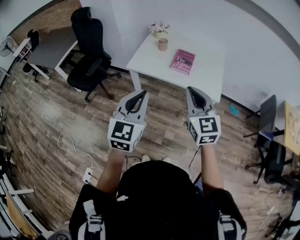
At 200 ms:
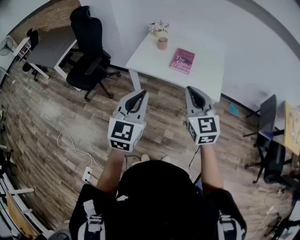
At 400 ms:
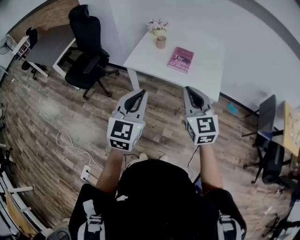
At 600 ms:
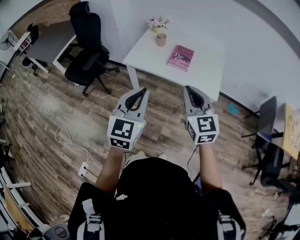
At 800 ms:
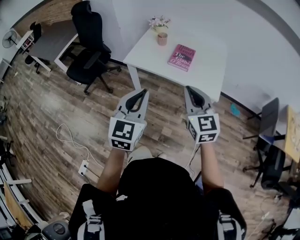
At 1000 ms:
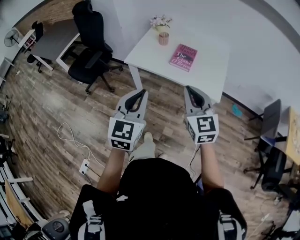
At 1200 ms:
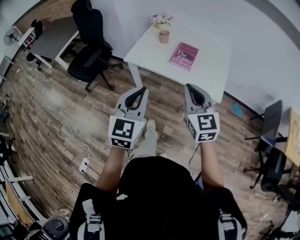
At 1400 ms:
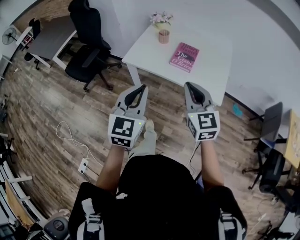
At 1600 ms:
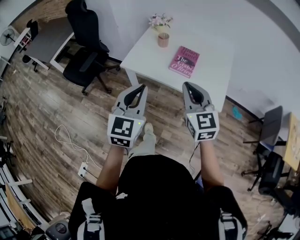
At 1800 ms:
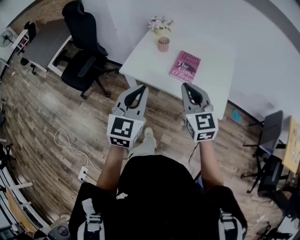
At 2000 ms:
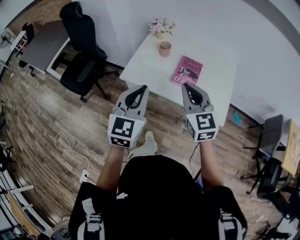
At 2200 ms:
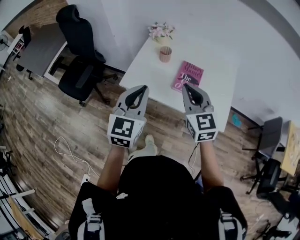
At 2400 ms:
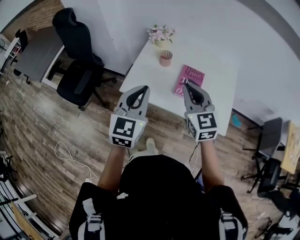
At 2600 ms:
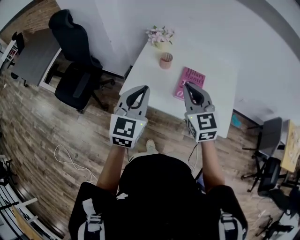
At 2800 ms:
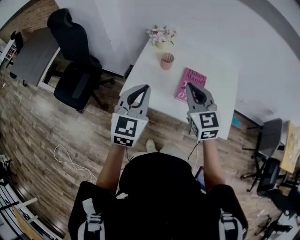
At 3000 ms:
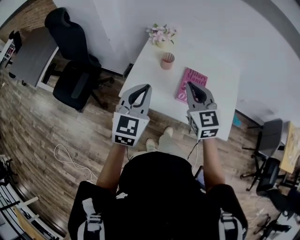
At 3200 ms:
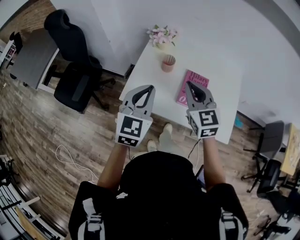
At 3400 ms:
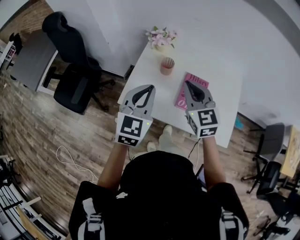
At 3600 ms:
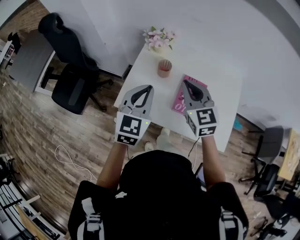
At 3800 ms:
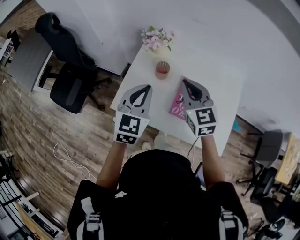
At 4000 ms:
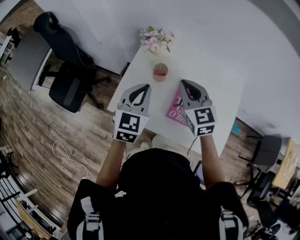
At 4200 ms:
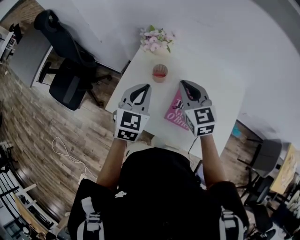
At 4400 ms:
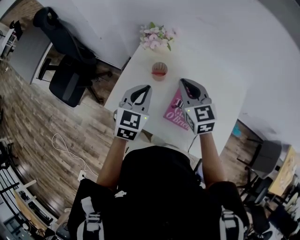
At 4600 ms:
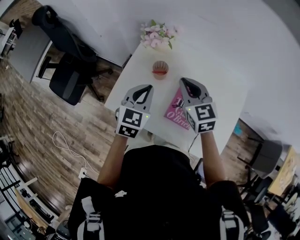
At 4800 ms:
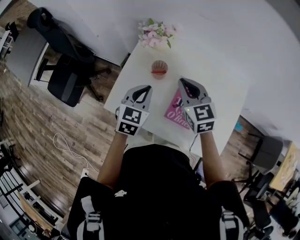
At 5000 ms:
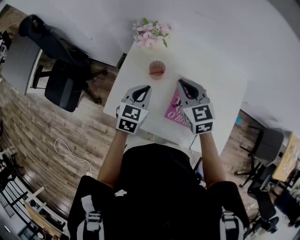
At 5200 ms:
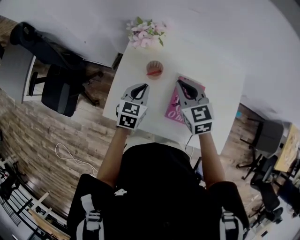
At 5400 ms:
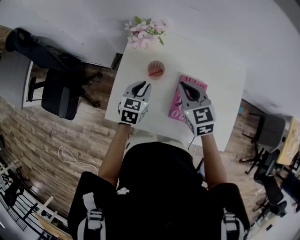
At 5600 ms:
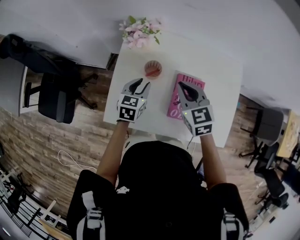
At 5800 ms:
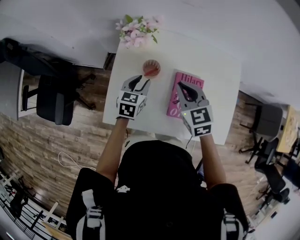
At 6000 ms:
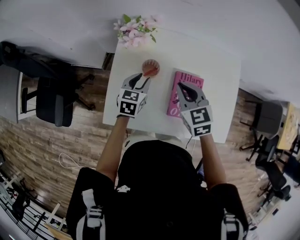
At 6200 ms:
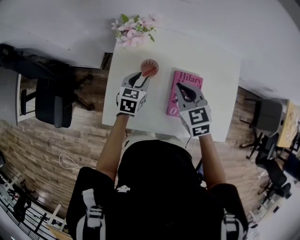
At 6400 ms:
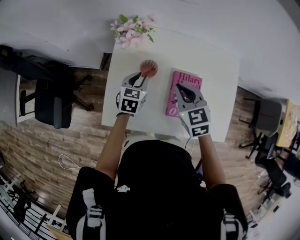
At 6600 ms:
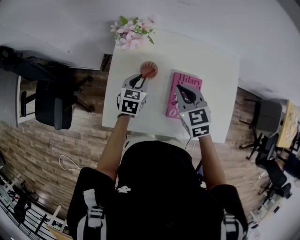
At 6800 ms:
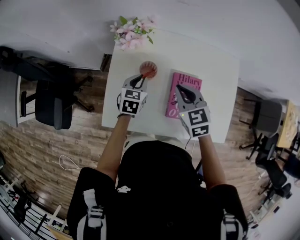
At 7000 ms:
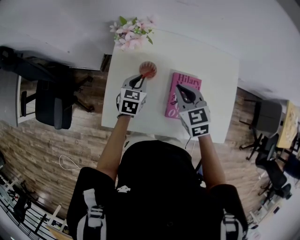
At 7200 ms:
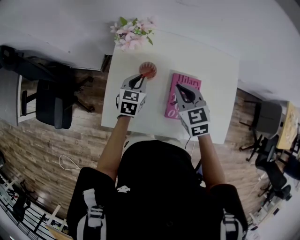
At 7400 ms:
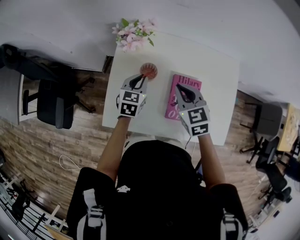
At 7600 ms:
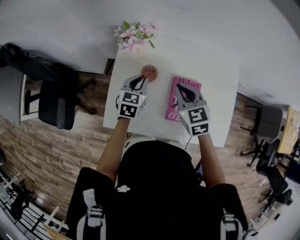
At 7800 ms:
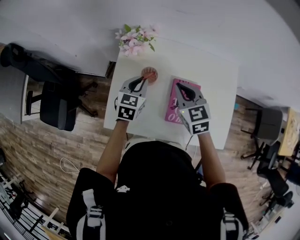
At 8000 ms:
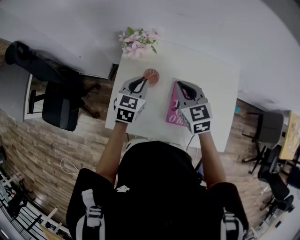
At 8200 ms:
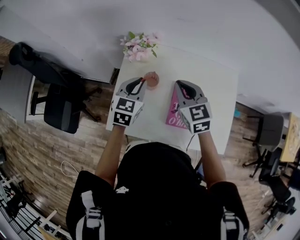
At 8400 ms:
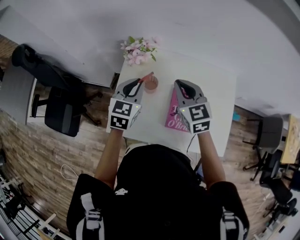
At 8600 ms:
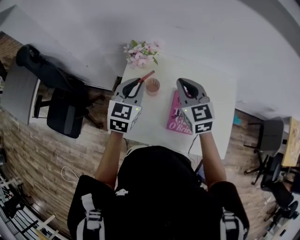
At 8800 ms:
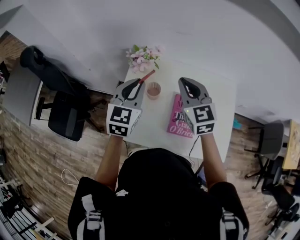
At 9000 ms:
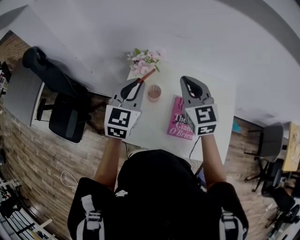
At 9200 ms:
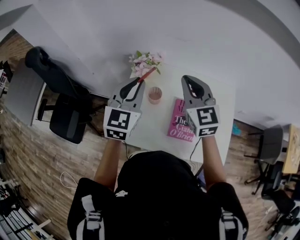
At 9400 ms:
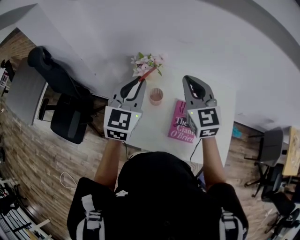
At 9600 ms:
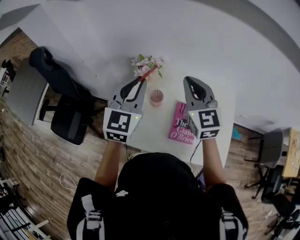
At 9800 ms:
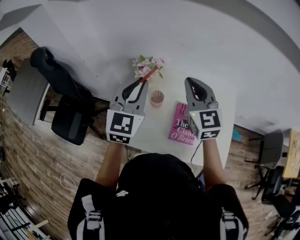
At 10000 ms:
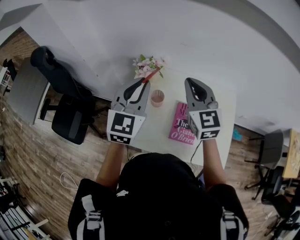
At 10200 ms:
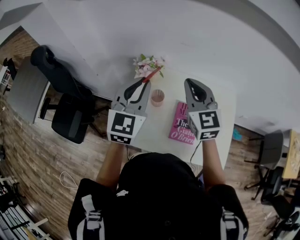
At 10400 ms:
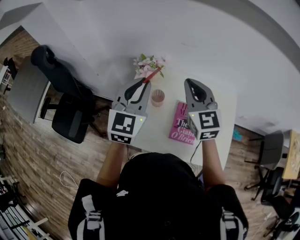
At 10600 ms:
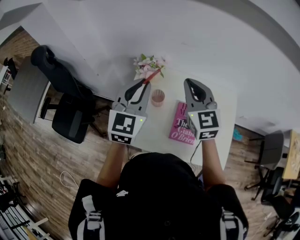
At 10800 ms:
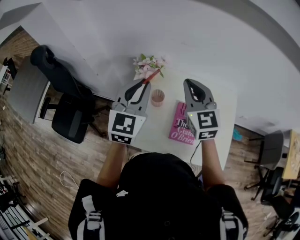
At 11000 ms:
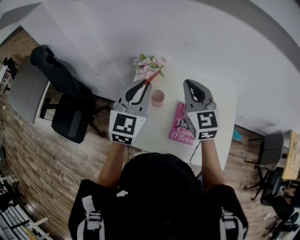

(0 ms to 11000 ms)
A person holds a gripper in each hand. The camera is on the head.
0 ms - 1600 ms: The two grippers go about 10 cm forward.
1600 ms - 3200 ms: The grippers both shift forward by roughly 25 cm.
3200 ms - 4800 ms: The right gripper heads forward and downward, covering roughly 20 cm. Meanwhile the left gripper moves forward, downward and to the right, about 20 cm.
4800 ms - 6200 ms: The right gripper goes roughly 5 cm downward; the left gripper travels downward and forward by some 15 cm, and opens its fingers.
6200 ms - 7800 ms: The left gripper is displaced upward by roughly 5 cm, and closes its fingers.
7800 ms - 9400 ms: The grippers both shift upward by roughly 20 cm. The left gripper rotates approximately 30 degrees. Meanwhile the right gripper swivels about 30 degrees.
9400 ms - 11000 ms: The grippers make only small movements.

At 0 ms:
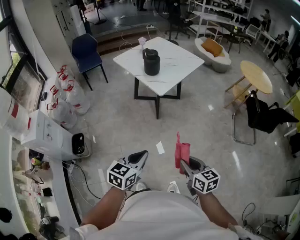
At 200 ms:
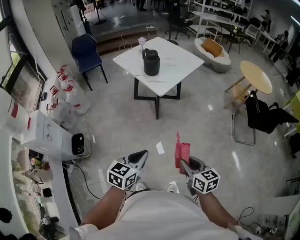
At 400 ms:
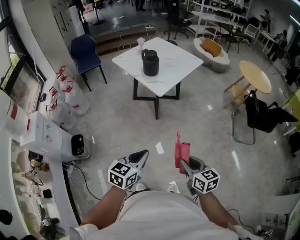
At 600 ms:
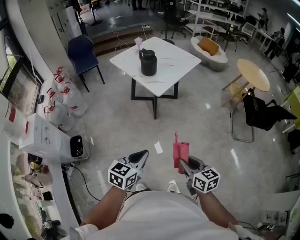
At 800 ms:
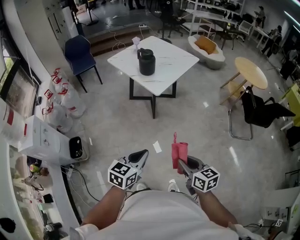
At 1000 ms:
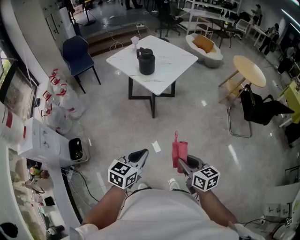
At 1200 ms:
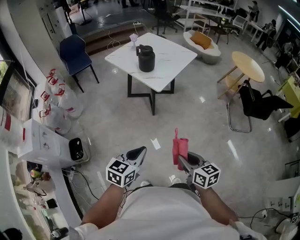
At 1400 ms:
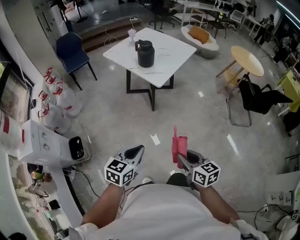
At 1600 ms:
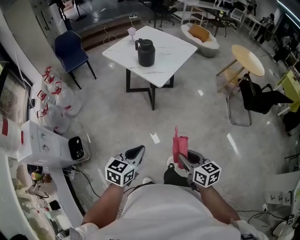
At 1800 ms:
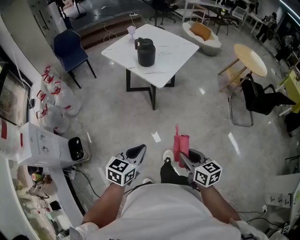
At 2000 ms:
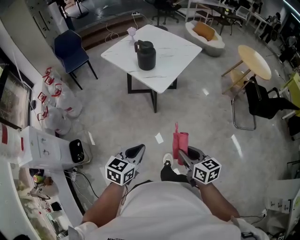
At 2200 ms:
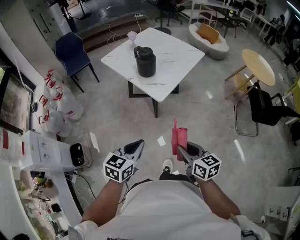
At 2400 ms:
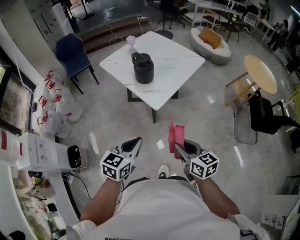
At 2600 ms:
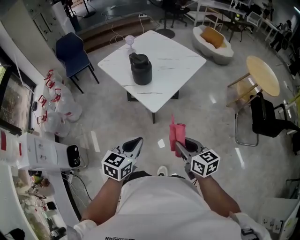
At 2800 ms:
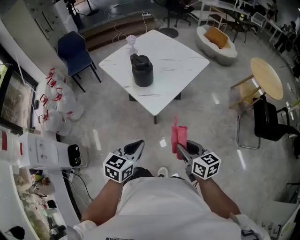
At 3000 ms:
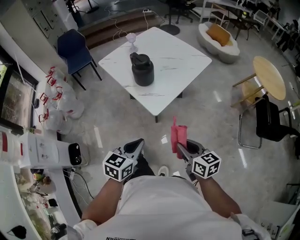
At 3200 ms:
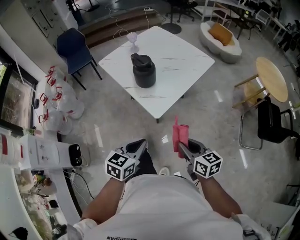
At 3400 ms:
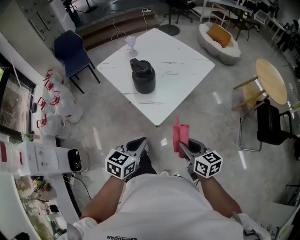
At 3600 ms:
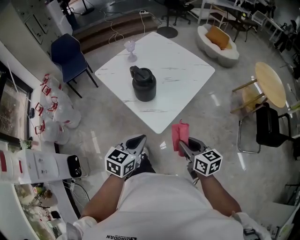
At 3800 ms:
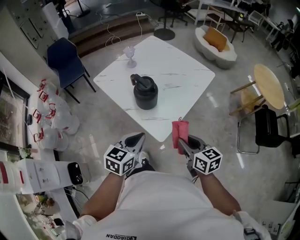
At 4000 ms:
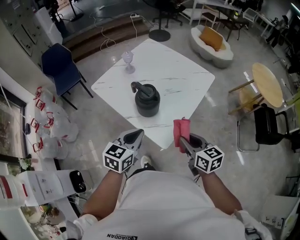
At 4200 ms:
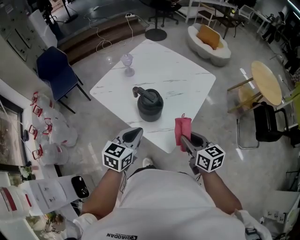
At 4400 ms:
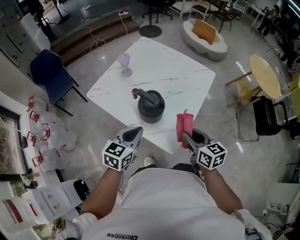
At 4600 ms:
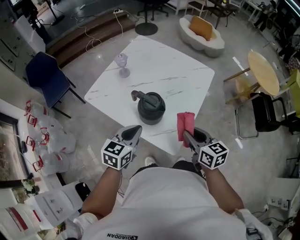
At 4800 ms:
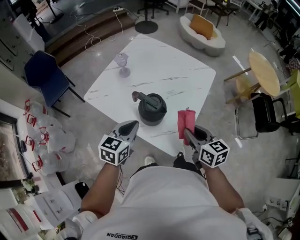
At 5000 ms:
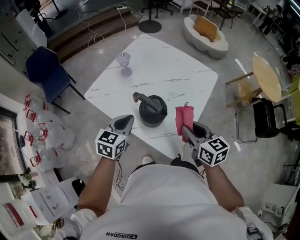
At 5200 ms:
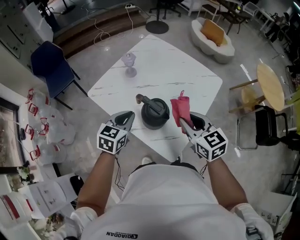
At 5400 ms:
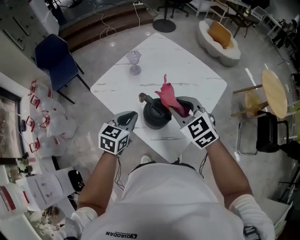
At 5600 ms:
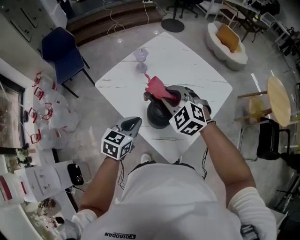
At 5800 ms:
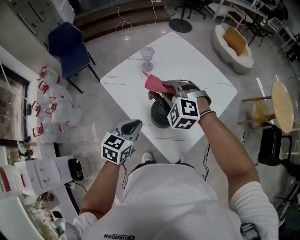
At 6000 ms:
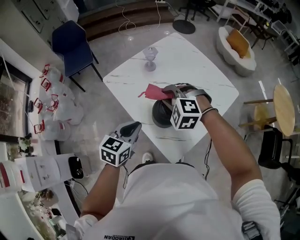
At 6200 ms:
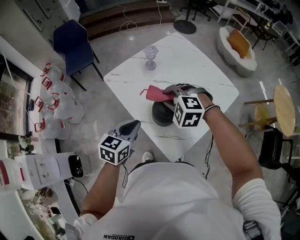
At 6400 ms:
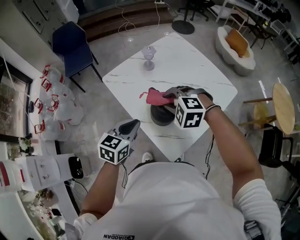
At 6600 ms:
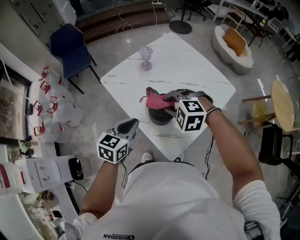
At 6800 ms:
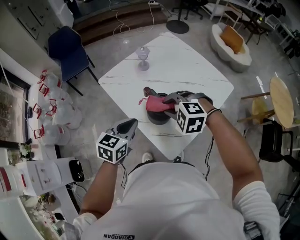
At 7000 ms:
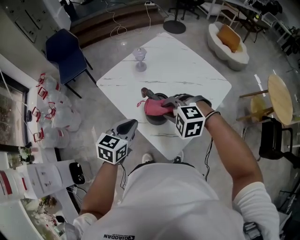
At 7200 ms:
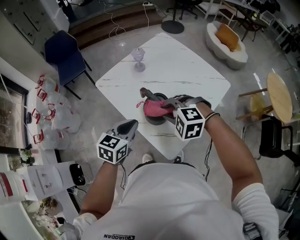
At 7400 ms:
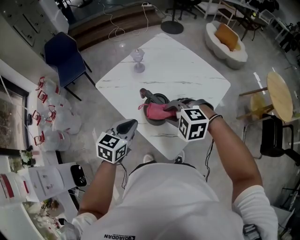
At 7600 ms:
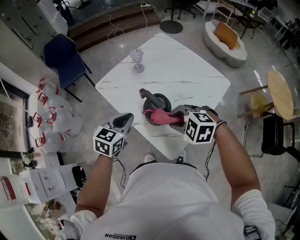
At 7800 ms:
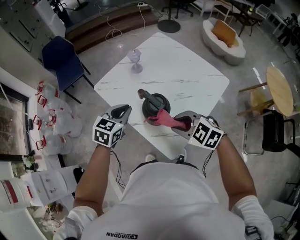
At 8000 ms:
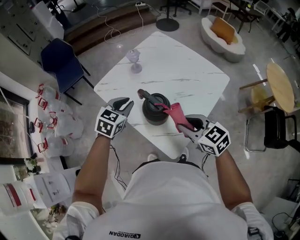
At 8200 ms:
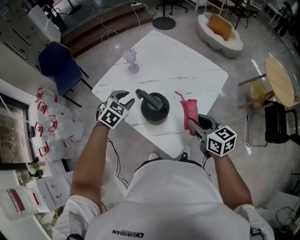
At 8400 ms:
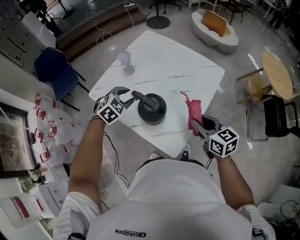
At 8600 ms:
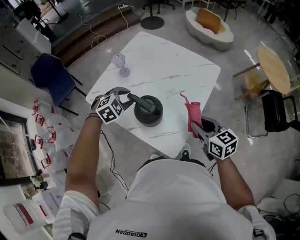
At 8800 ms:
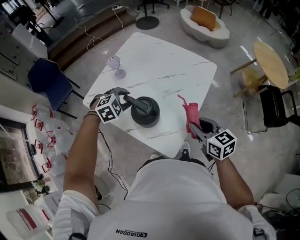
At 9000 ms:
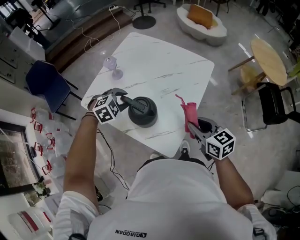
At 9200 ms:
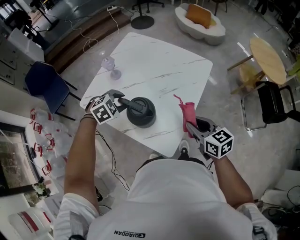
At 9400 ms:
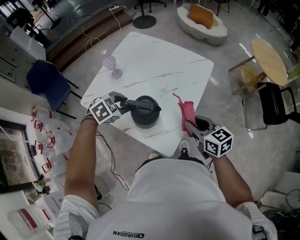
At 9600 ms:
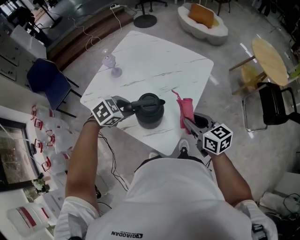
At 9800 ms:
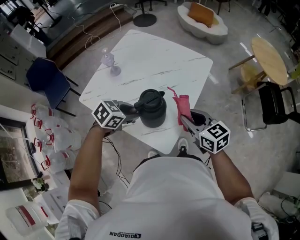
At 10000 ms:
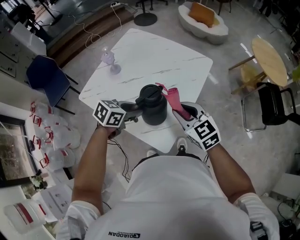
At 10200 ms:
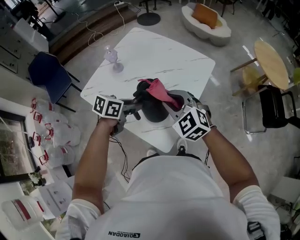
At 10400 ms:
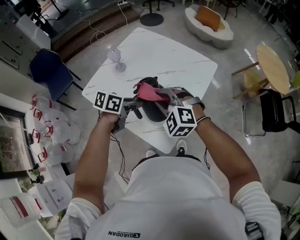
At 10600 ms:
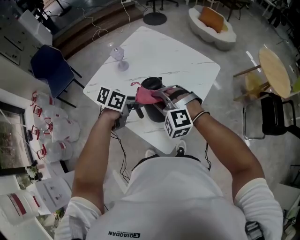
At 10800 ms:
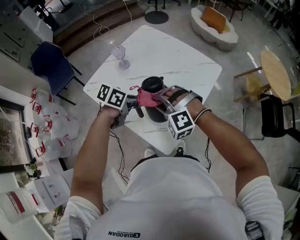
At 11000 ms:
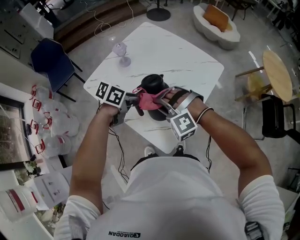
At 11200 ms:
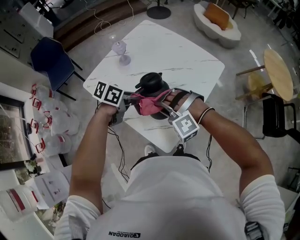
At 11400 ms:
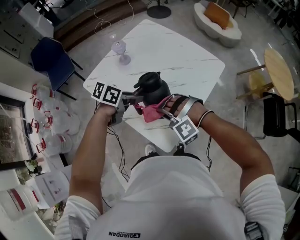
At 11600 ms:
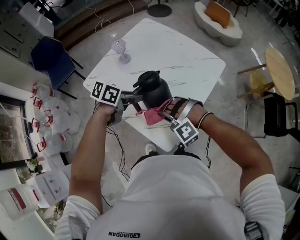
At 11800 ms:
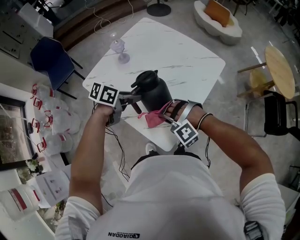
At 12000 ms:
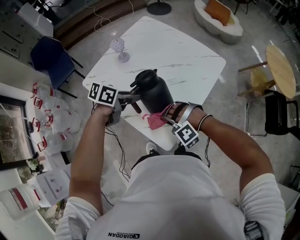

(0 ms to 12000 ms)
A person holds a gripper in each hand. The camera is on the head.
0 ms - 1600 ms: The two grippers go about 10 cm to the left.
1600 ms - 3000 ms: The two grippers go some 30 cm forward.
3000 ms - 4400 ms: Both grippers travel together forward, some 30 cm.
4400 ms - 6000 ms: The right gripper is displaced to the left and forward by approximately 25 cm, and rotates around the line of its fingers by about 90 degrees, counterclockwise from behind. Meanwhile the left gripper moves to the left, approximately 5 cm.
6000 ms - 7600 ms: The right gripper moves backward, about 15 cm, and rotates some 20 degrees.
7600 ms - 9000 ms: The right gripper shifts by approximately 15 cm, and rolls clockwise, seen from behind, by about 70 degrees. The left gripper changes place by roughly 15 cm, rotates around the line of its fingers by some 60 degrees, clockwise from behind, and opens its fingers.
9000 ms - 10400 ms: The right gripper travels to the left by about 15 cm, and rotates around the line of its fingers by about 70 degrees, counterclockwise from behind; the left gripper travels to the right by about 5 cm, and rolls counterclockwise, seen from behind, by some 70 degrees.
10400 ms - 12000 ms: The right gripper shifts some 15 cm downward and backward, and rolls counterclockwise, seen from behind, by about 50 degrees.
